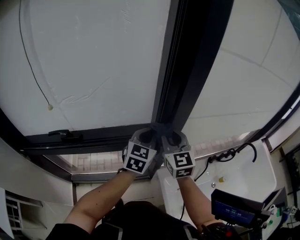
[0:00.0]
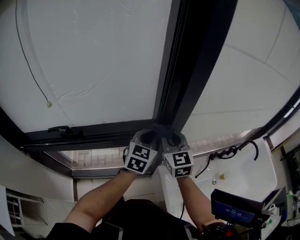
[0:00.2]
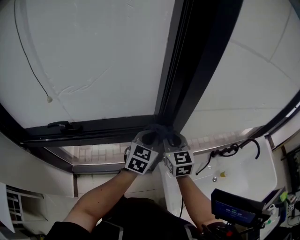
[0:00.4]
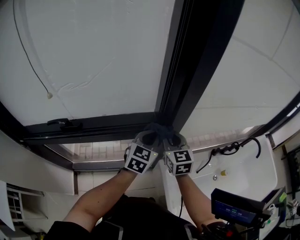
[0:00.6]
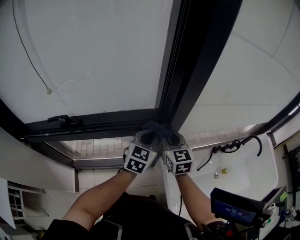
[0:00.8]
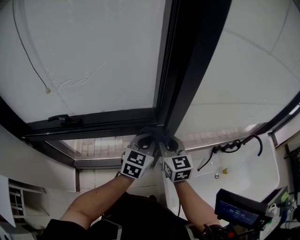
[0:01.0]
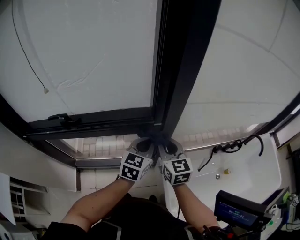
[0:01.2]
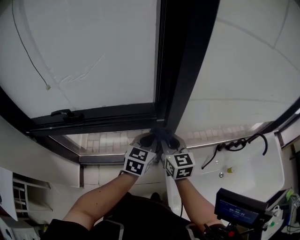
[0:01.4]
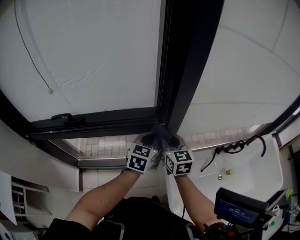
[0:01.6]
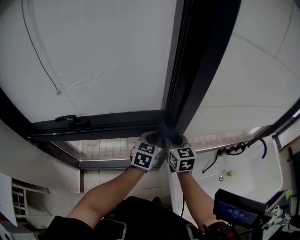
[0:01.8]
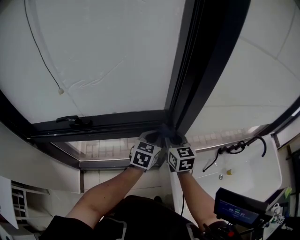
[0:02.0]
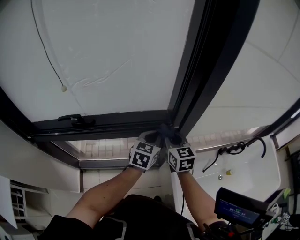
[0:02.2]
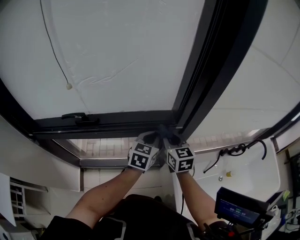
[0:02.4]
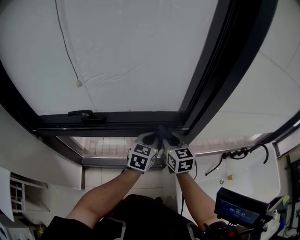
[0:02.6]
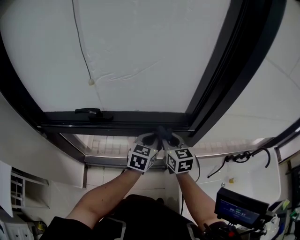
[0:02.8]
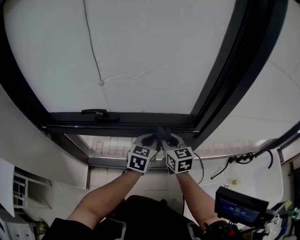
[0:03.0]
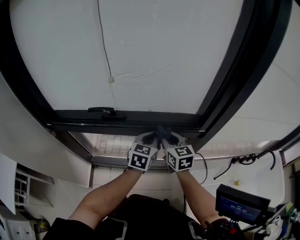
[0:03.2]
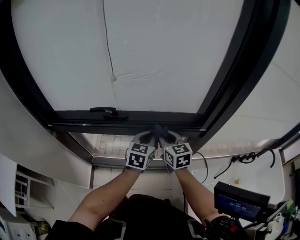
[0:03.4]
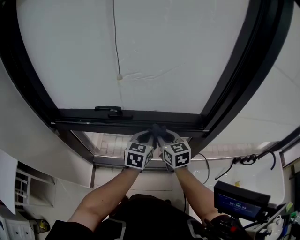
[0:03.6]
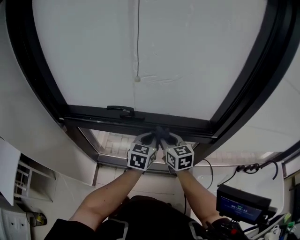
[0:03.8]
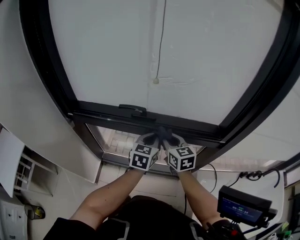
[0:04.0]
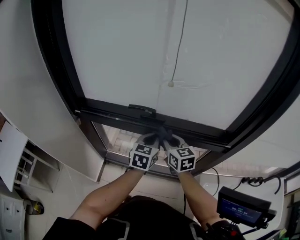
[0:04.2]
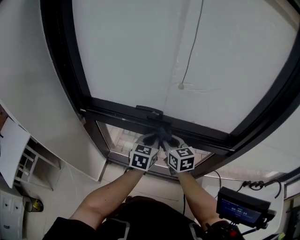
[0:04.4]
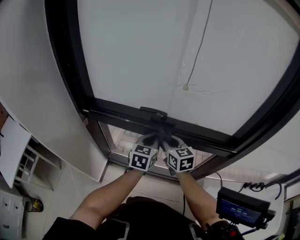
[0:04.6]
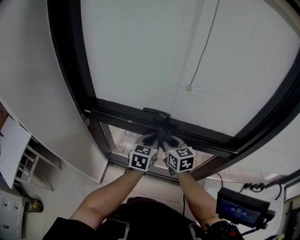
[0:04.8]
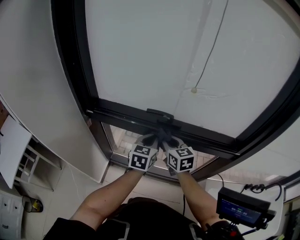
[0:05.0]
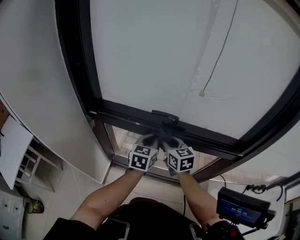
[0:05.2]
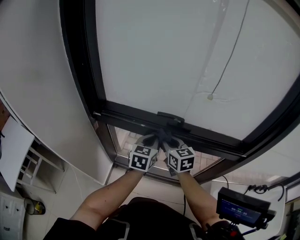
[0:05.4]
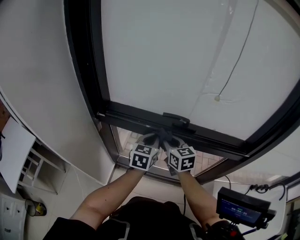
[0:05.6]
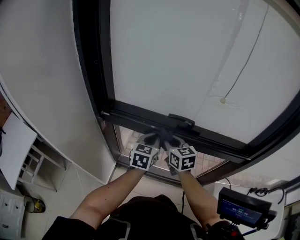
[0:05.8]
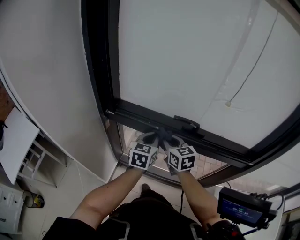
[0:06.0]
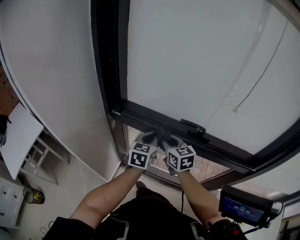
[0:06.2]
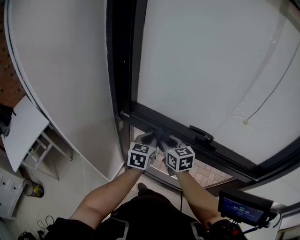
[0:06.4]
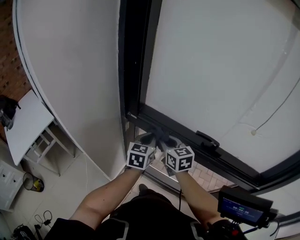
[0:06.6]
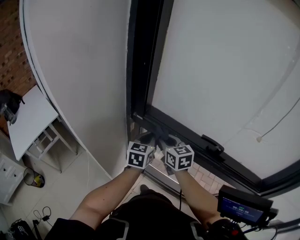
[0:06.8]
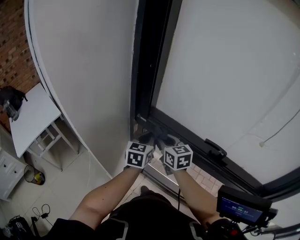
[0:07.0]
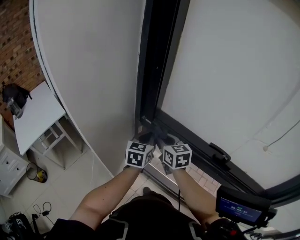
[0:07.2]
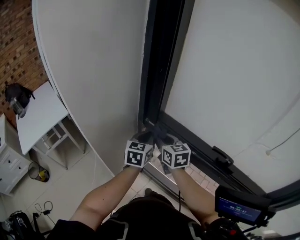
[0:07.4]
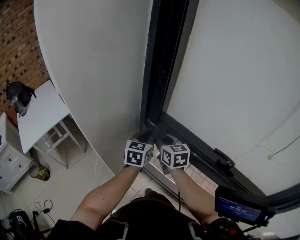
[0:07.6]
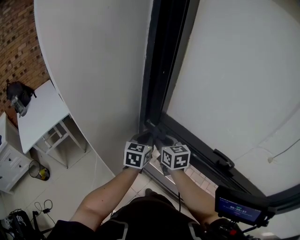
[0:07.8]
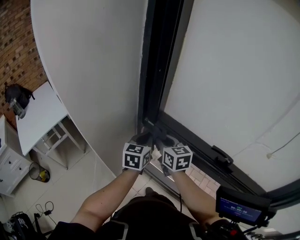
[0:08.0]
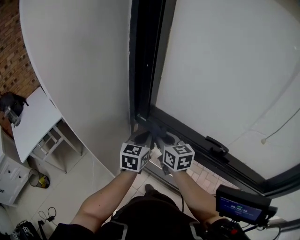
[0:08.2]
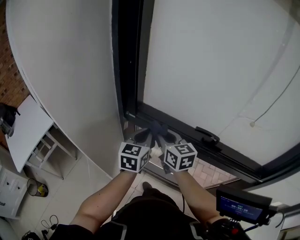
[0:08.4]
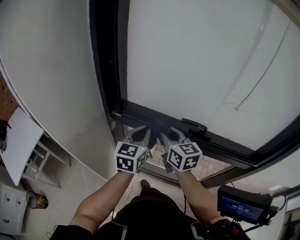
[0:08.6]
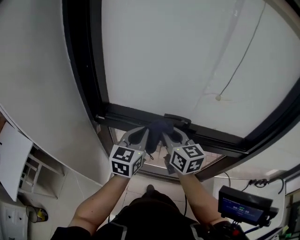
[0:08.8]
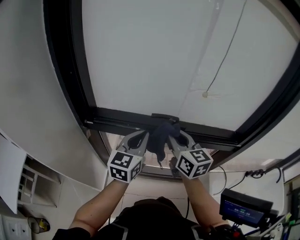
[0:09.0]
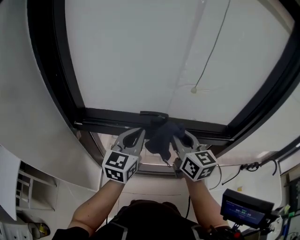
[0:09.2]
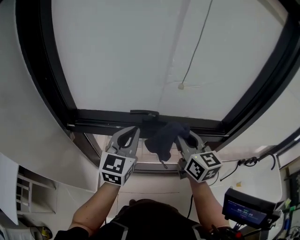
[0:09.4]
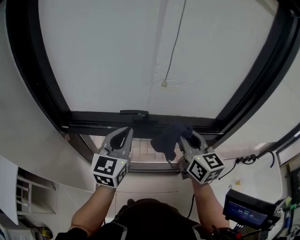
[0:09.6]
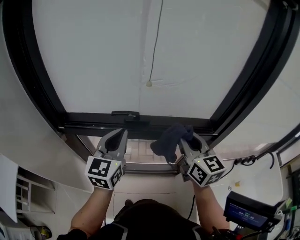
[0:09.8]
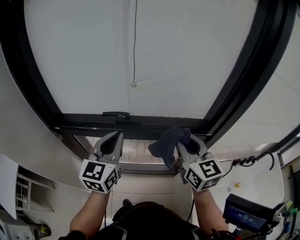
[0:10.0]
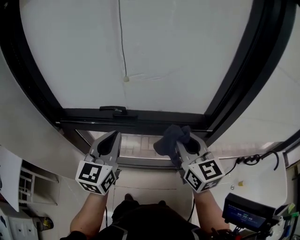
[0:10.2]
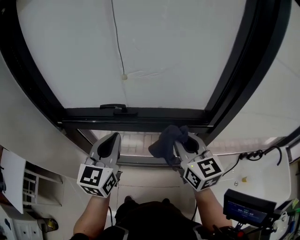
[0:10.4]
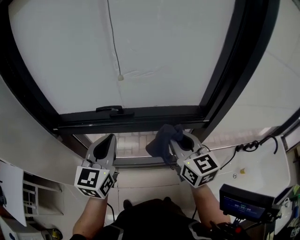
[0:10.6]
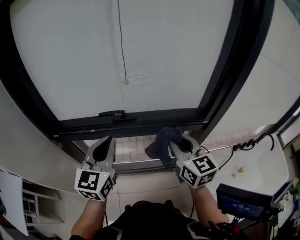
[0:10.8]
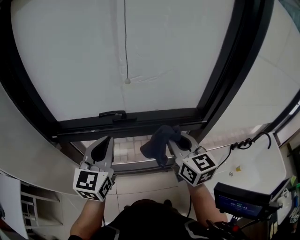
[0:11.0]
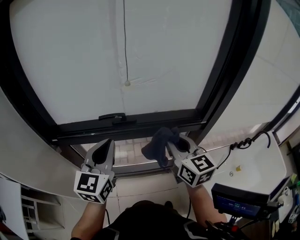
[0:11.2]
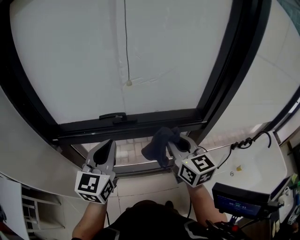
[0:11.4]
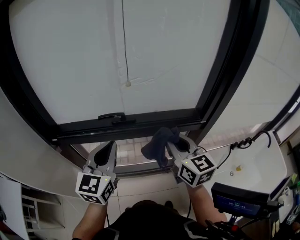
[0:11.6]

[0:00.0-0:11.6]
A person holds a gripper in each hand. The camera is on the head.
0:00.0 to 0:01.4: The right gripper travels downward by roughly 10 cm; the left gripper moves downward and backward, approximately 10 cm.
0:01.4 to 0:02.8: The two grippers go some 15 cm to the left.
0:02.8 to 0:04.4: The two grippers go approximately 25 cm to the left.
0:04.4 to 0:05.8: Both grippers move to the left, some 15 cm.
0:05.8 to 0:07.2: The left gripper heads to the left, covering some 20 cm, and rotates about 30 degrees; the right gripper travels to the left and forward by some 20 cm, and swivels roughly 20 degrees.
0:07.2 to 0:08.8: The right gripper shifts by approximately 25 cm, and turns by approximately 30 degrees; the left gripper shifts by approximately 20 cm, and rotates roughly 30 degrees.
0:08.8 to 0:10.2: The right gripper travels to the right by some 30 cm. Meanwhile the left gripper heads to the right, covering some 15 cm.
0:10.2 to 0:11.6: The right gripper heads to the left, covering roughly 5 cm.

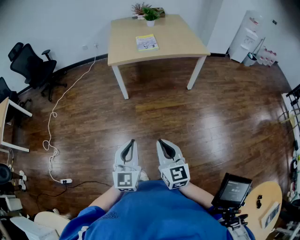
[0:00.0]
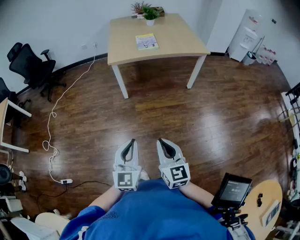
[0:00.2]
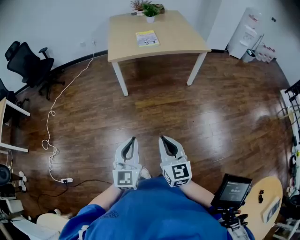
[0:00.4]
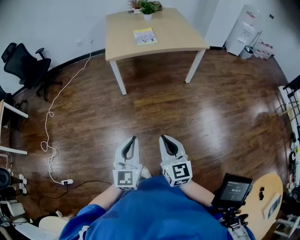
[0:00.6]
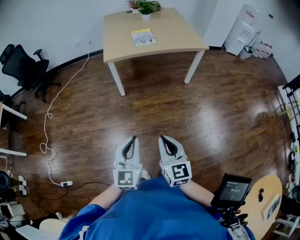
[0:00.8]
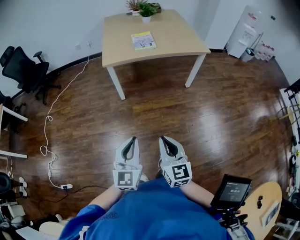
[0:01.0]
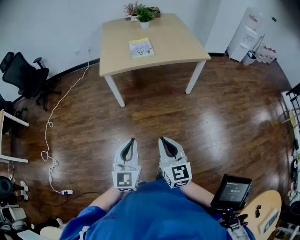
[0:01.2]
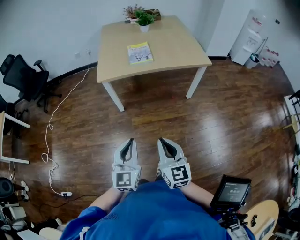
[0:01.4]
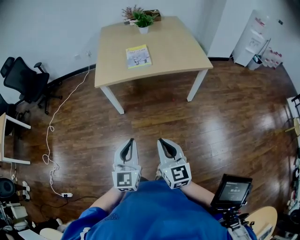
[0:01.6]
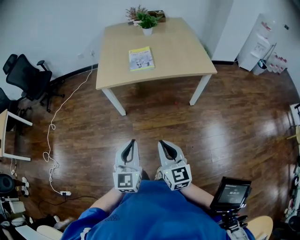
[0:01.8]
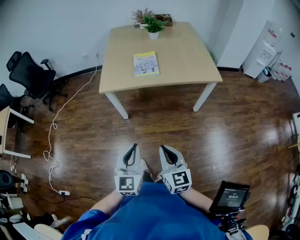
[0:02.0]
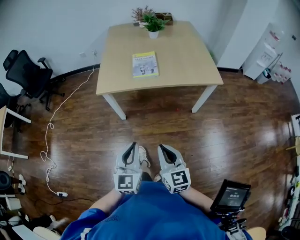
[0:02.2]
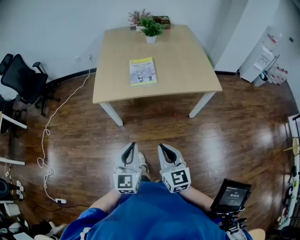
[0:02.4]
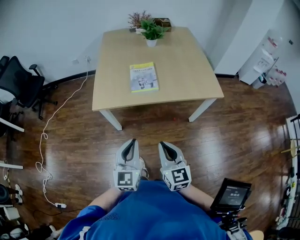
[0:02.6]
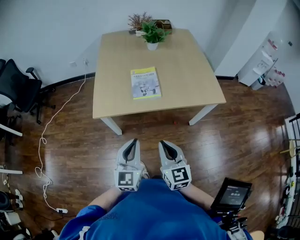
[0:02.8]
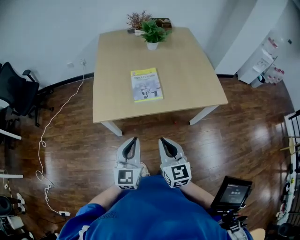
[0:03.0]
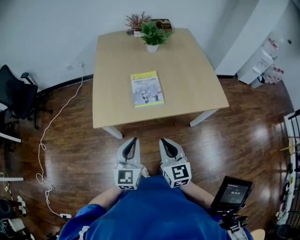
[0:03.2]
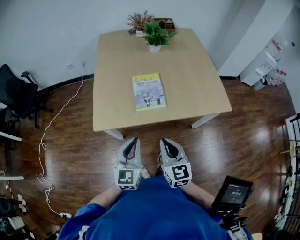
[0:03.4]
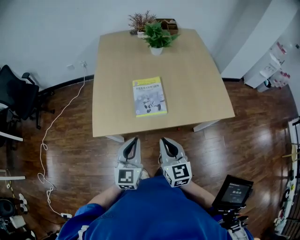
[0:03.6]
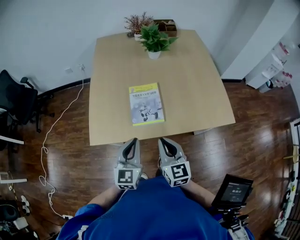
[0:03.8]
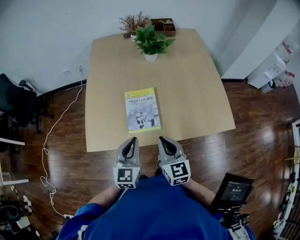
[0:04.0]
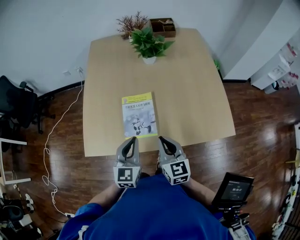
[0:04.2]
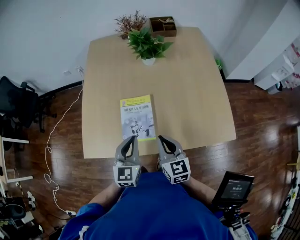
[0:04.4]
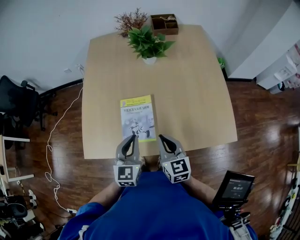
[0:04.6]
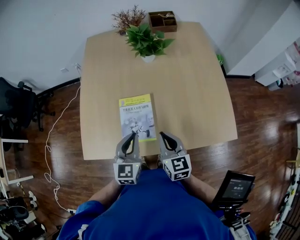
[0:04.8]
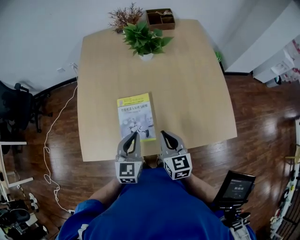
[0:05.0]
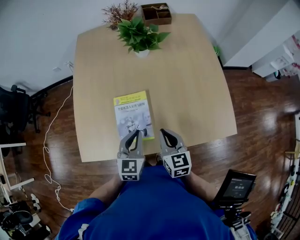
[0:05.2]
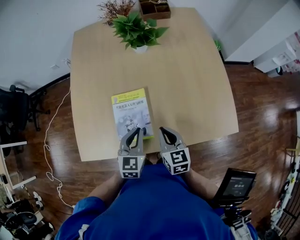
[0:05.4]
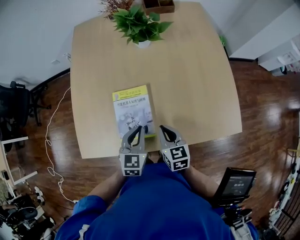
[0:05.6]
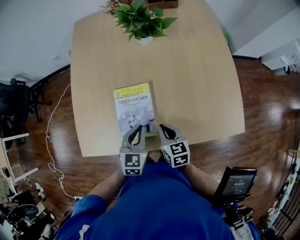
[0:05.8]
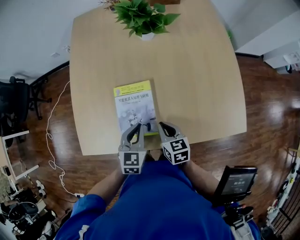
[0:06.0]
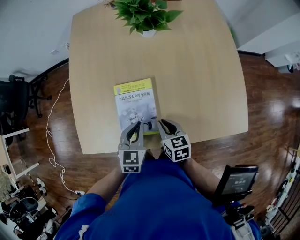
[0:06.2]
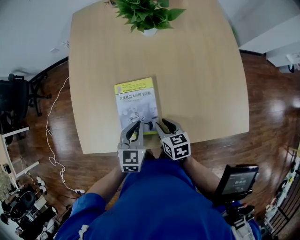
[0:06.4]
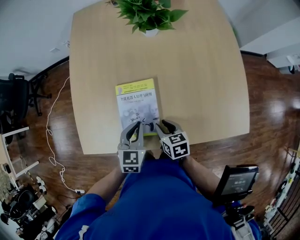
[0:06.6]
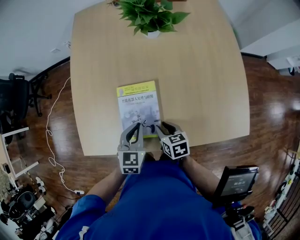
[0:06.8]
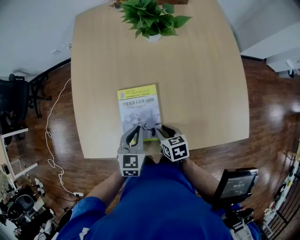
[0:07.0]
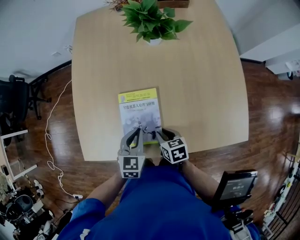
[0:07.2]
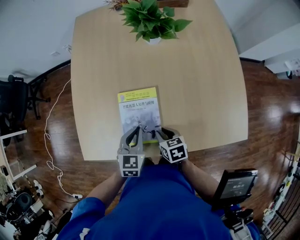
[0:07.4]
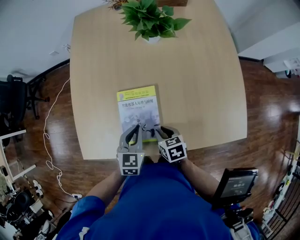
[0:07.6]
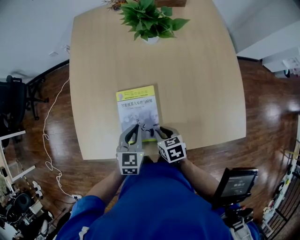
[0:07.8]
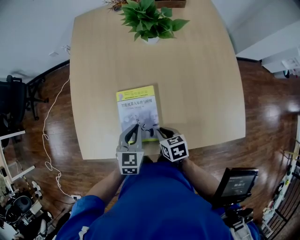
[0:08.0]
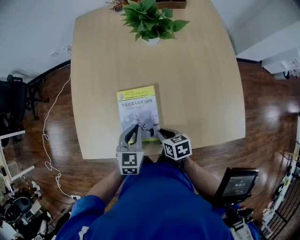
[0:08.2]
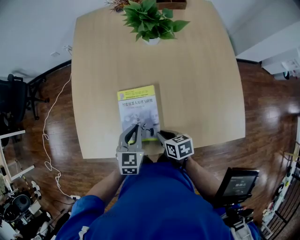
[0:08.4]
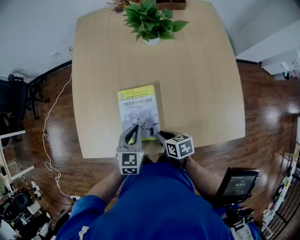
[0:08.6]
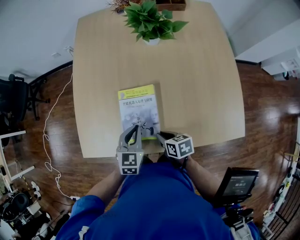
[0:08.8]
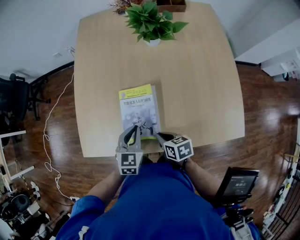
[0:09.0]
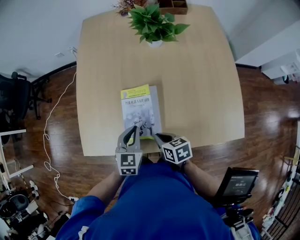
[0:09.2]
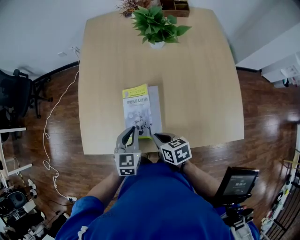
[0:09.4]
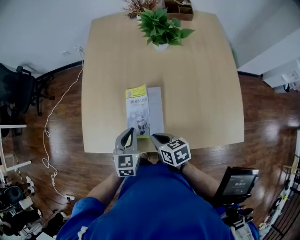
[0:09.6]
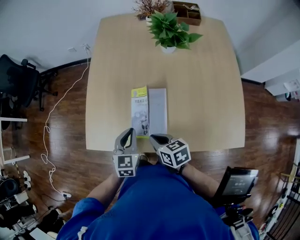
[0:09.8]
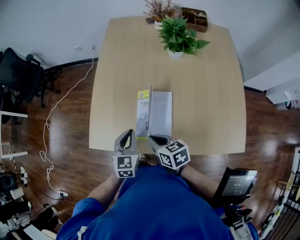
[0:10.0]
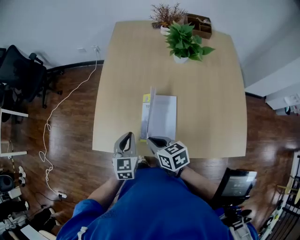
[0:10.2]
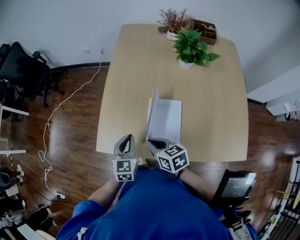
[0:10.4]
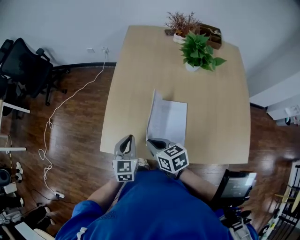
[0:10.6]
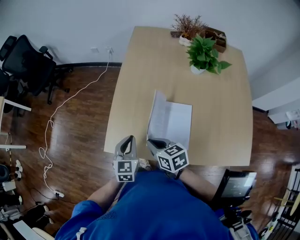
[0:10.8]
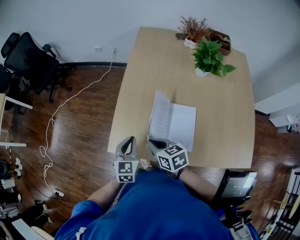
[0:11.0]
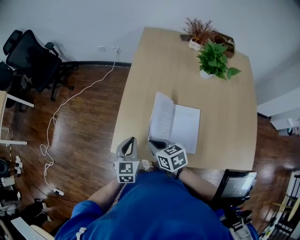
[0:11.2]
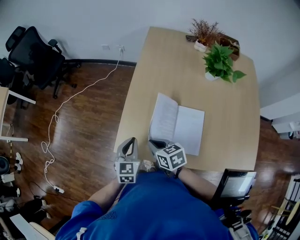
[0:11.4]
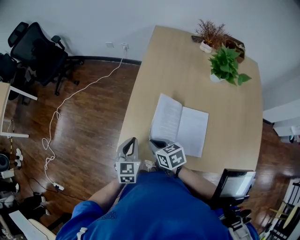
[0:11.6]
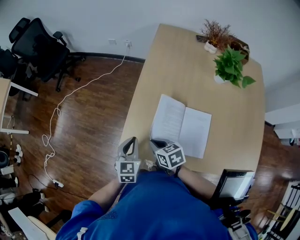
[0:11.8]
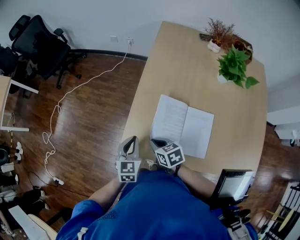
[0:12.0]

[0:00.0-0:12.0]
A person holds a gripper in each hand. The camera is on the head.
0:00.0 to 0:01.6: Both grippers move forward and to the right, about 25 cm.
0:01.6 to 0:03.0: Both grippers move forward, roughly 35 cm.
0:03.0 to 0:04.4: Both grippers move forward, approximately 30 cm.
0:04.4 to 0:06.0: The grippers both shift downward and forward by roughly 15 cm. The right gripper rotates approximately 20 degrees.
0:06.0 to 0:07.6: The right gripper opens up.
0:07.6 to 0:09.0: The right gripper closes.
0:09.0 to 0:10.4: The right gripper heads to the left and upward, covering approximately 20 cm, and swivels approximately 20 degrees; the left gripper shifts about 15 cm to the left.
0:10.4 to 0:12.0: The left gripper heads to the left and forward, covering some 15 cm. The right gripper shifts approximately 20 cm to the left, forward and downward.
